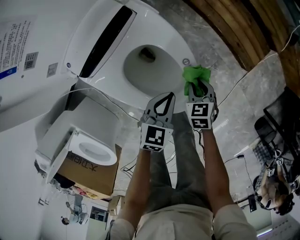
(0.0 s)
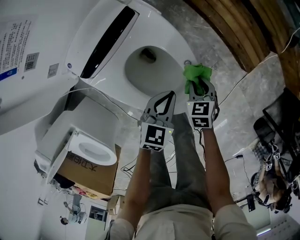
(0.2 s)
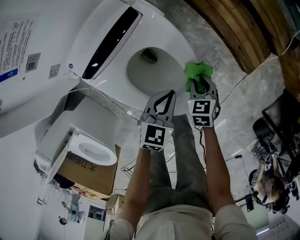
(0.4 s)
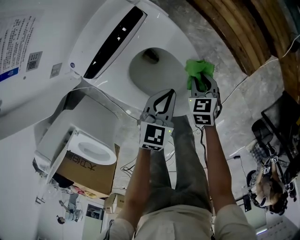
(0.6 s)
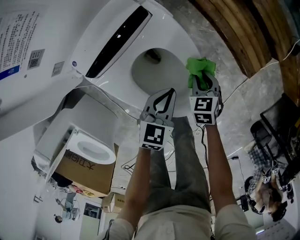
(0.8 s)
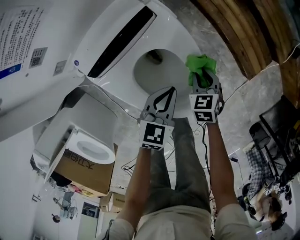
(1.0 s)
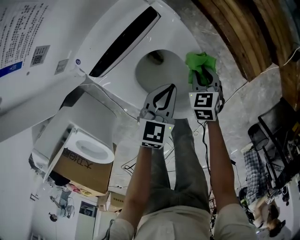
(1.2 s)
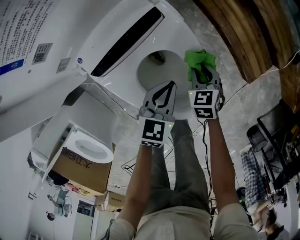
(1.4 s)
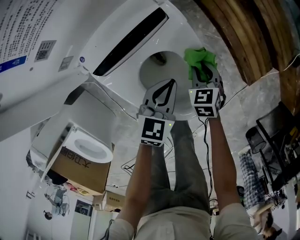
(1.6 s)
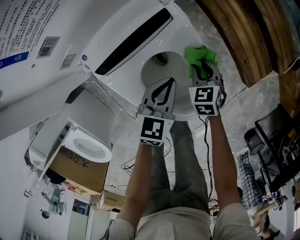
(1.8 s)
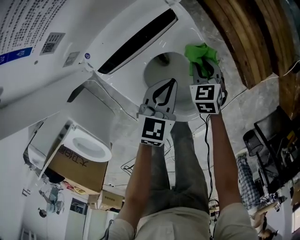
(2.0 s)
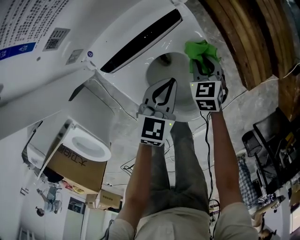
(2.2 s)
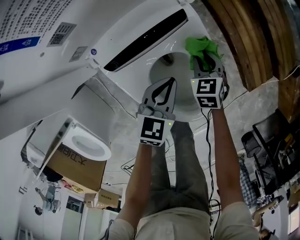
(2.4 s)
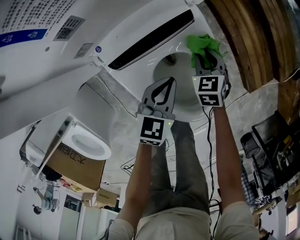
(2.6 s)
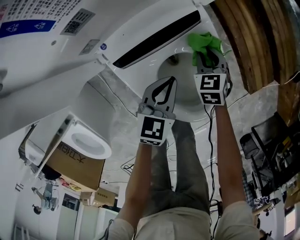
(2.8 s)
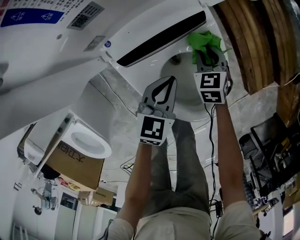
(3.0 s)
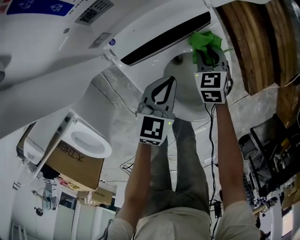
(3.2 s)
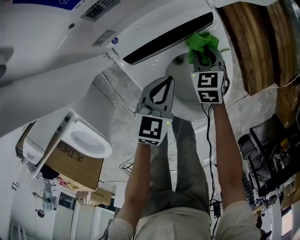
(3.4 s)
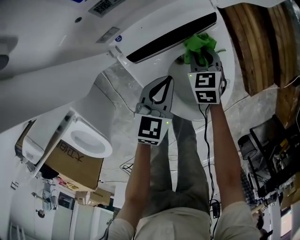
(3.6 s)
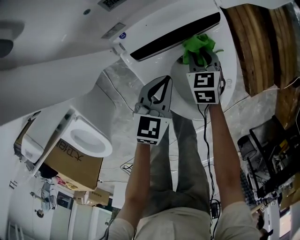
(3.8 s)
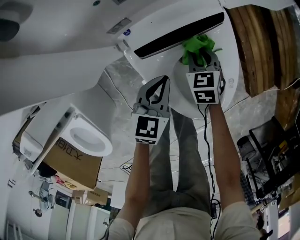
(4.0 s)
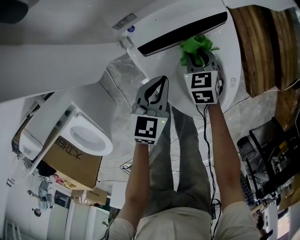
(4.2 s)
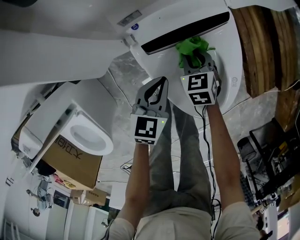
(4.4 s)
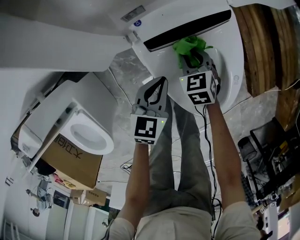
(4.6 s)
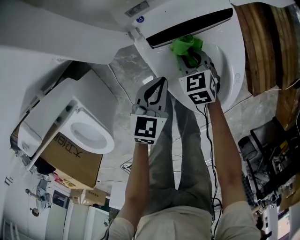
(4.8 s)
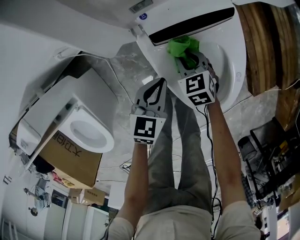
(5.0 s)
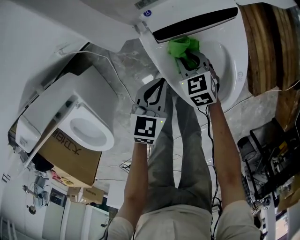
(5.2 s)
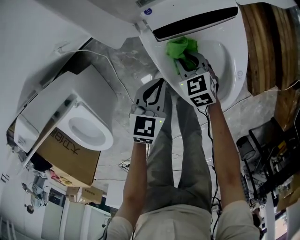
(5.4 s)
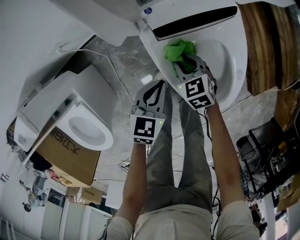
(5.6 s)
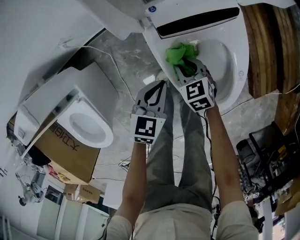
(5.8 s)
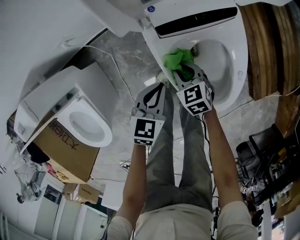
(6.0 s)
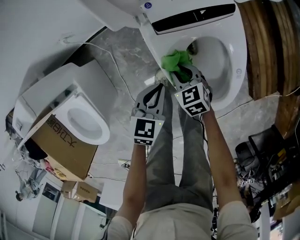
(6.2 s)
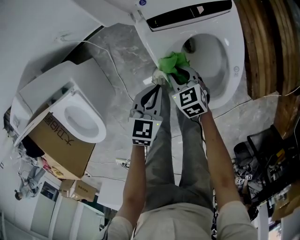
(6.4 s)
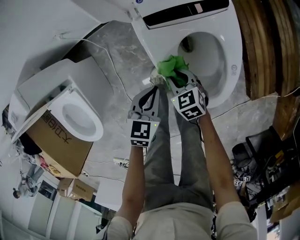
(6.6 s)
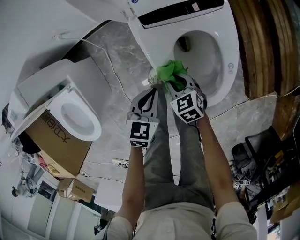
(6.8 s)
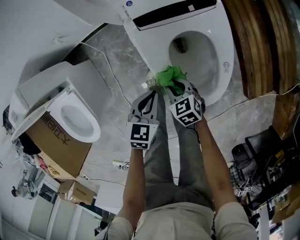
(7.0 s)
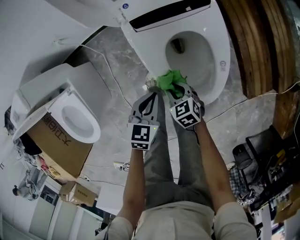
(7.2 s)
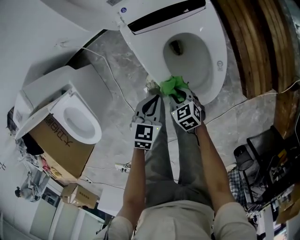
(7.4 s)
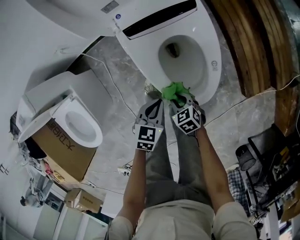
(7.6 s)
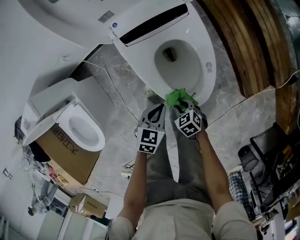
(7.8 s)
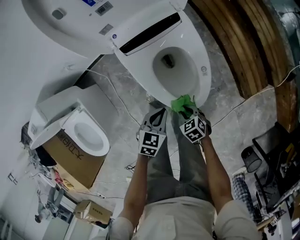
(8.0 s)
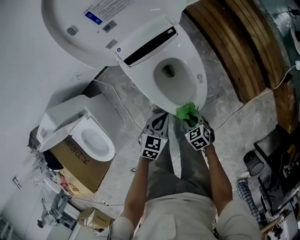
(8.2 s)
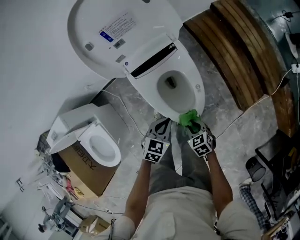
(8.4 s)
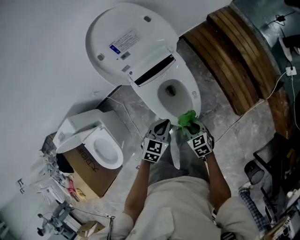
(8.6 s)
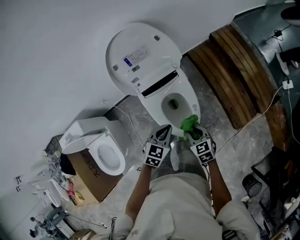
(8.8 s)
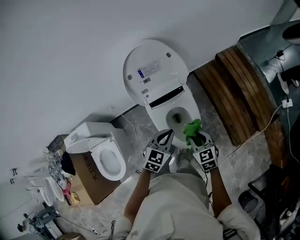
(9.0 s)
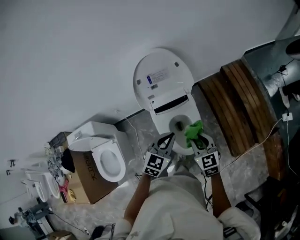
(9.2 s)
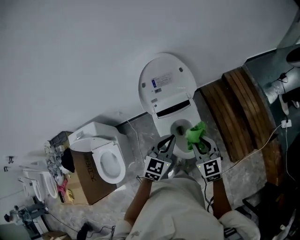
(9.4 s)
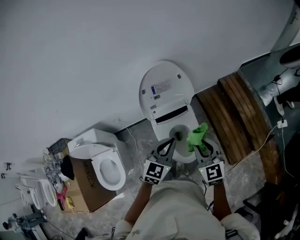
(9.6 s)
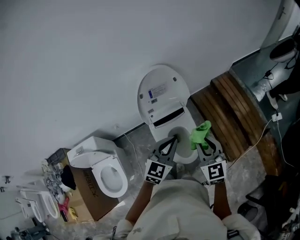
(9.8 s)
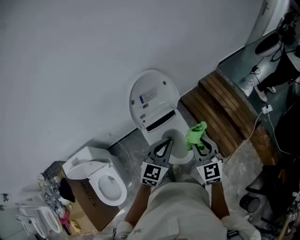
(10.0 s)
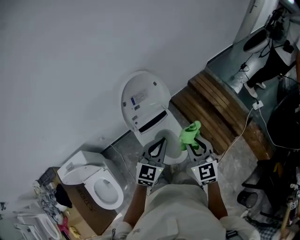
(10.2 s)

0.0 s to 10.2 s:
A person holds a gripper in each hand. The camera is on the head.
0.0 to 1.4 s: The left gripper moves to the left and forward, about 10 cm, while the right gripper travels forward and to the left by approximately 10 cm.
1.4 to 3.0 s: The right gripper travels to the left and forward by approximately 15 cm; the left gripper goes approximately 10 cm to the left.
3.0 to 4.4 s: The right gripper travels to the left and backward by approximately 15 cm. The left gripper goes about 10 cm to the left.
4.4 to 5.8 s: The right gripper is displaced backward and to the left by some 10 cm, while the left gripper travels backward by some 5 cm.
5.8 to 7.2 s: The left gripper moves backward, some 10 cm. Meanwhile the right gripper heads backward, covering about 15 cm.
7.2 to 8.8 s: Both grippers move upward and to the right, about 30 cm. The right gripper turns by about 20 degrees; the left gripper changes its angle by roughly 20 degrees.
8.8 to 10.2 s: Both grippers move upward, roughly 30 cm. The right gripper swivels about 40 degrees, while the left gripper turns by about 30 degrees.

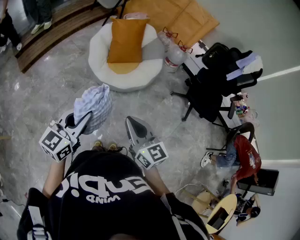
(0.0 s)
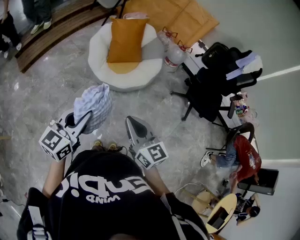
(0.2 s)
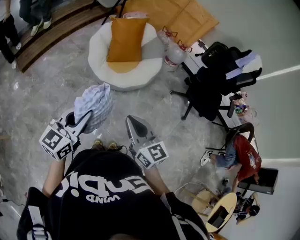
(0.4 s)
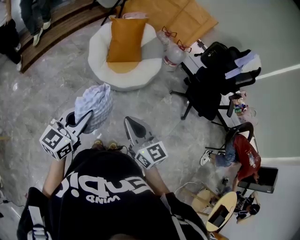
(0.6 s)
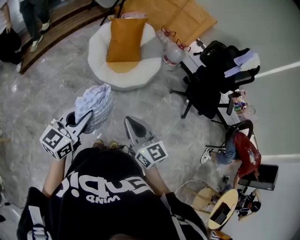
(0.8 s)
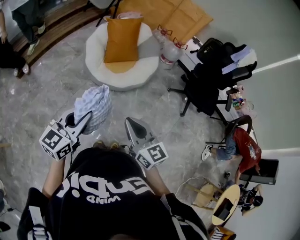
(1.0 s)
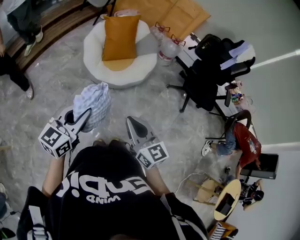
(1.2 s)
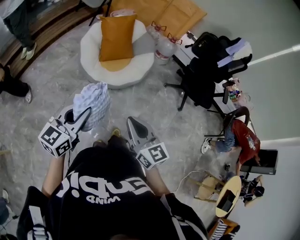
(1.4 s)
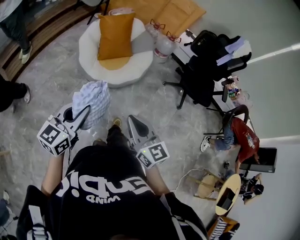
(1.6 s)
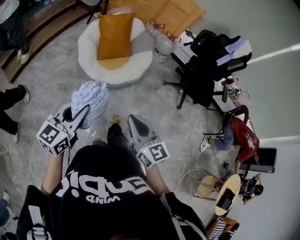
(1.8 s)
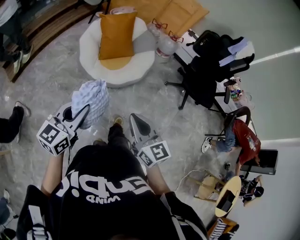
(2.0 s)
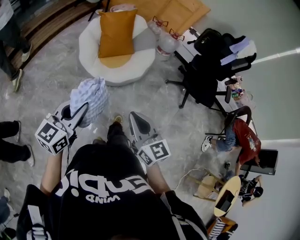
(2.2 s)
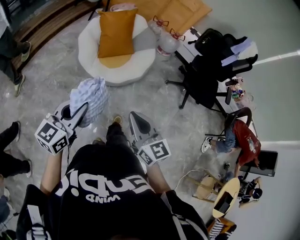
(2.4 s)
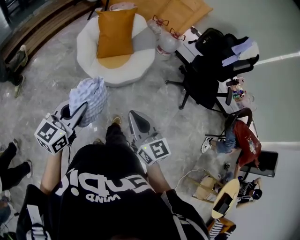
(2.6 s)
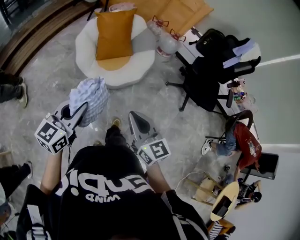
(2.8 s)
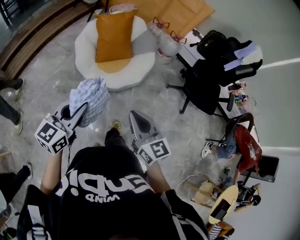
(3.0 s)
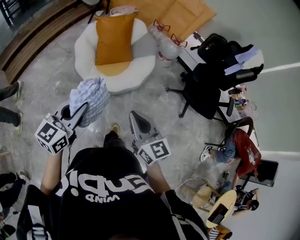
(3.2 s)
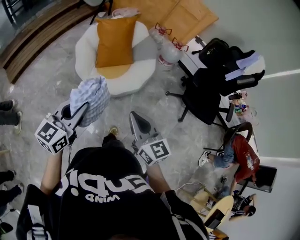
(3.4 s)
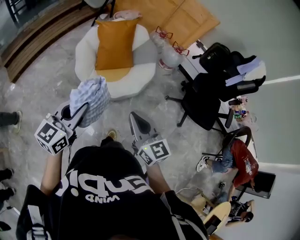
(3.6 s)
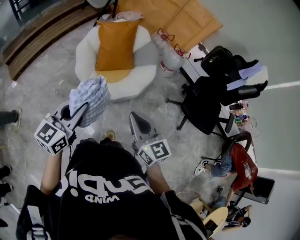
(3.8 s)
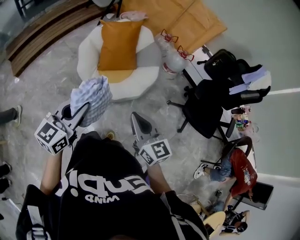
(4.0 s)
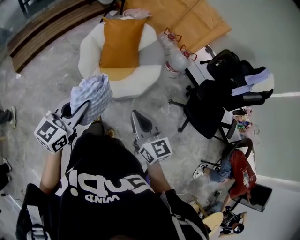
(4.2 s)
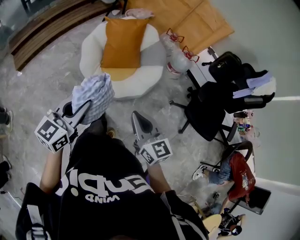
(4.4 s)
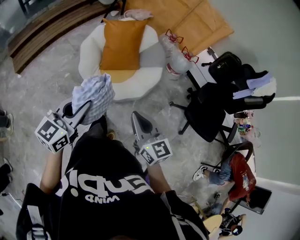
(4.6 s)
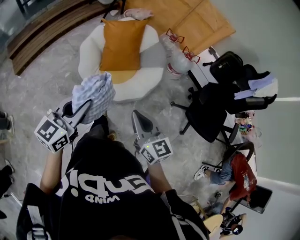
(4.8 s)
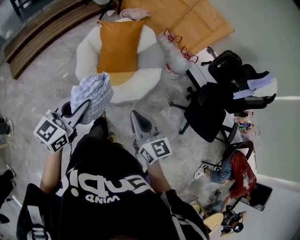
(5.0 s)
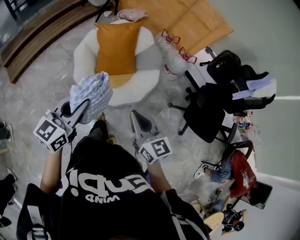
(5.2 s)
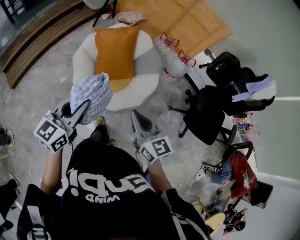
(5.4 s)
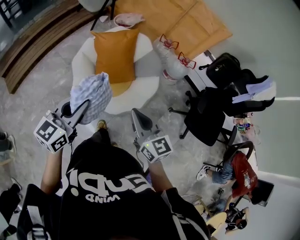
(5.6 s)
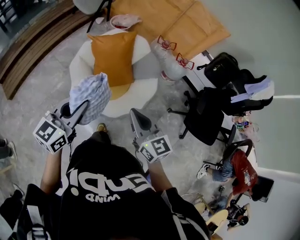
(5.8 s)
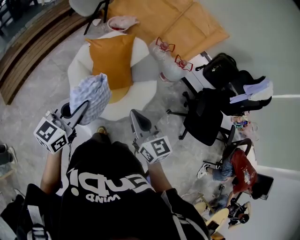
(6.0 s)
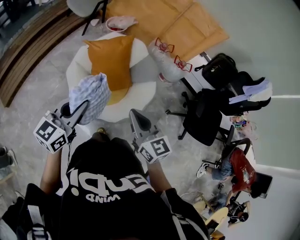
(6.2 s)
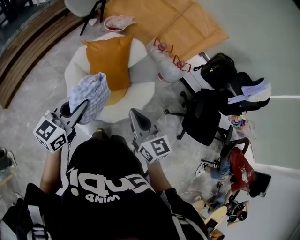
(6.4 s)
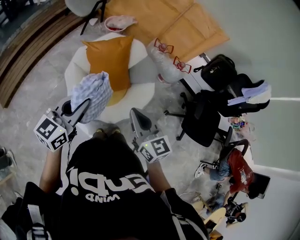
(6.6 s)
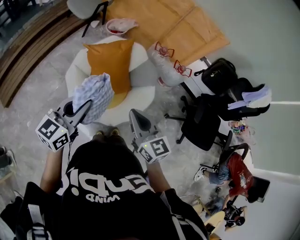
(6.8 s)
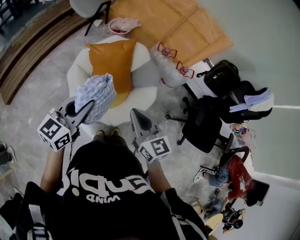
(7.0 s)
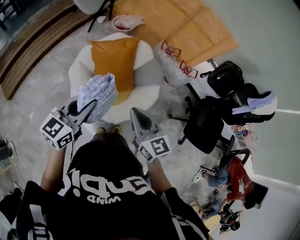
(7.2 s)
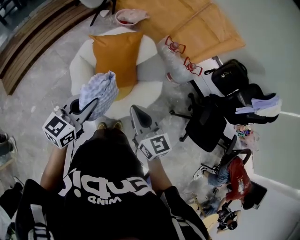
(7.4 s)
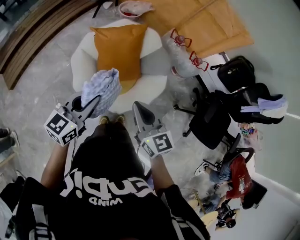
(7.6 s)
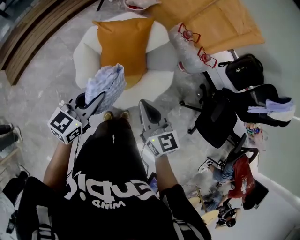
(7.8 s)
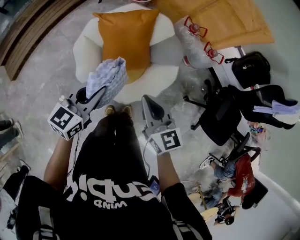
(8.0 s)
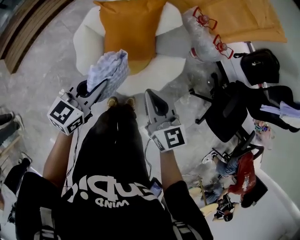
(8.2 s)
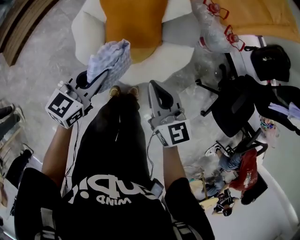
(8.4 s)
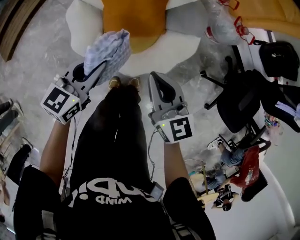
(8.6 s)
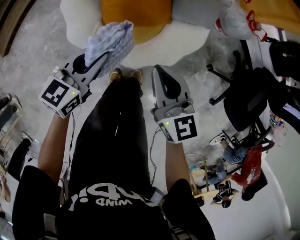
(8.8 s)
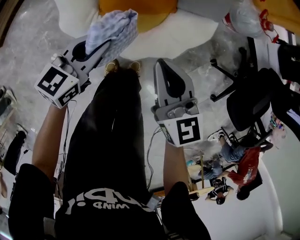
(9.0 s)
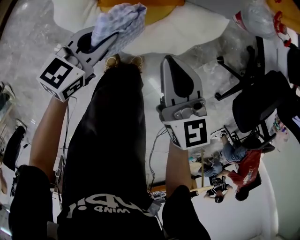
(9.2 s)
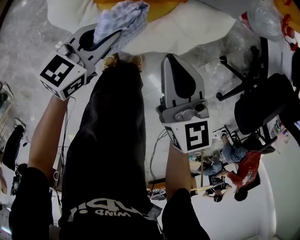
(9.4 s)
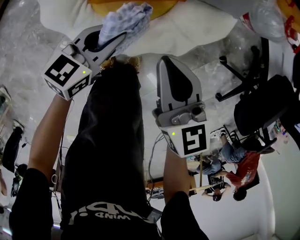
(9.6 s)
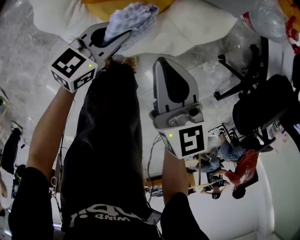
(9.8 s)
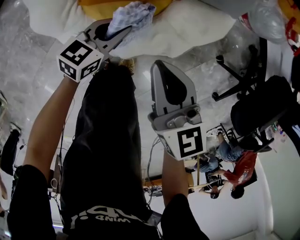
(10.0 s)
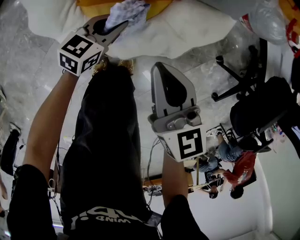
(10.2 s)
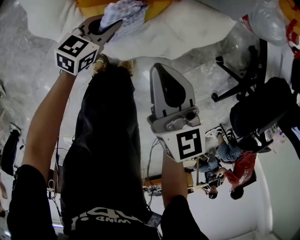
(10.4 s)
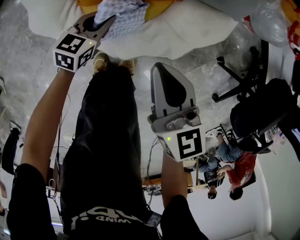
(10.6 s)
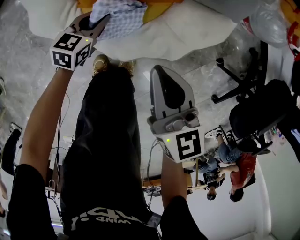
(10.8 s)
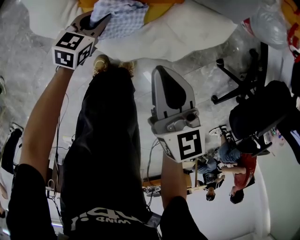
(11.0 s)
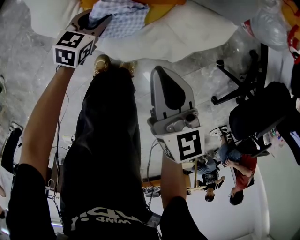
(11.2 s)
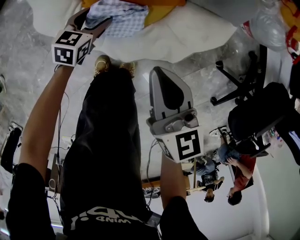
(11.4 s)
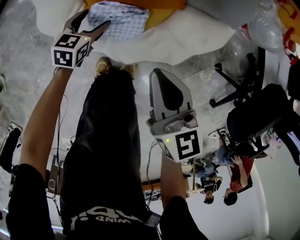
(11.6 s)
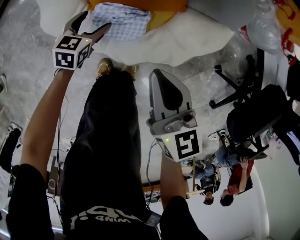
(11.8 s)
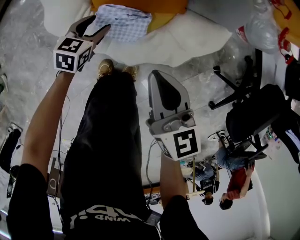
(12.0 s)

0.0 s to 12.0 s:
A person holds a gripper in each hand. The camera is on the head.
0.0 to 1.6 s: The grippers make only small movements.
1.6 to 3.0 s: The grippers both shift forward by some 15 cm.
3.0 to 4.4 s: The grippers both shift forward and to the right by approximately 10 cm.
4.4 to 6.0 s: Both grippers travel together forward, some 25 cm.
6.0 to 7.6 s: The right gripper shifts some 10 cm forward. Meanwhile the left gripper heads forward and downward, covering roughly 10 cm.
7.6 to 9.0 s: The two grippers go some 30 cm downward.
9.0 to 10.4 s: The left gripper shifts approximately 25 cm downward. Meanwhile the right gripper shifts roughly 15 cm downward.
10.4 to 12.0 s: The left gripper goes roughly 10 cm to the left, and opens up.

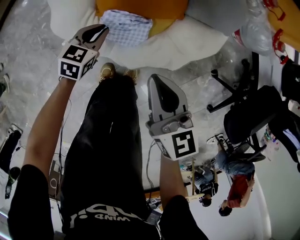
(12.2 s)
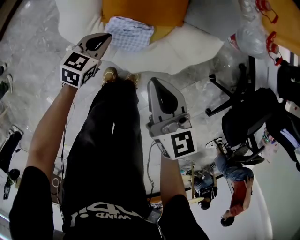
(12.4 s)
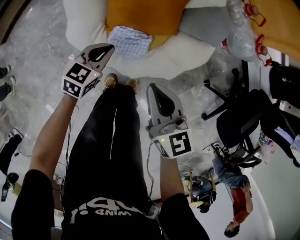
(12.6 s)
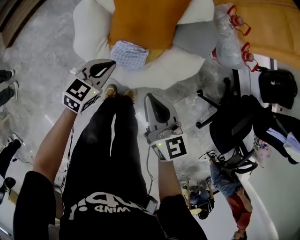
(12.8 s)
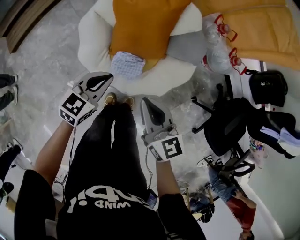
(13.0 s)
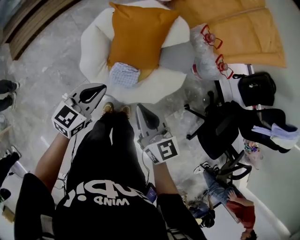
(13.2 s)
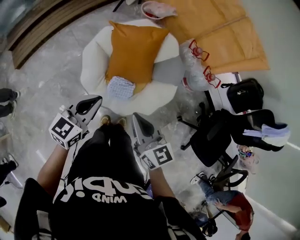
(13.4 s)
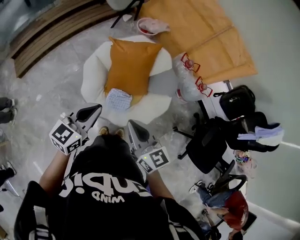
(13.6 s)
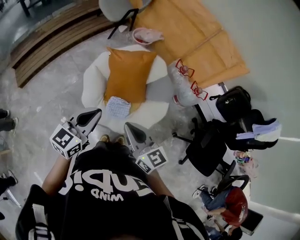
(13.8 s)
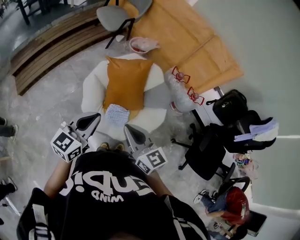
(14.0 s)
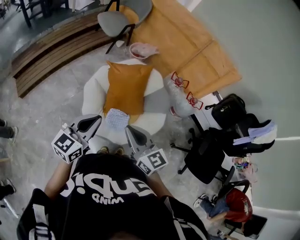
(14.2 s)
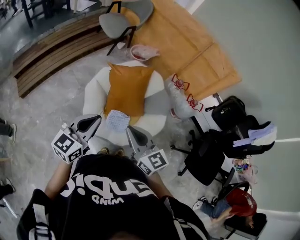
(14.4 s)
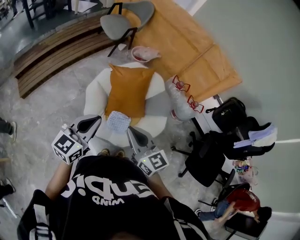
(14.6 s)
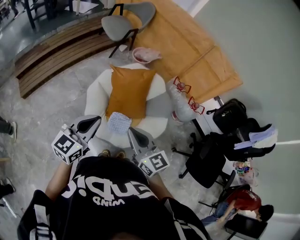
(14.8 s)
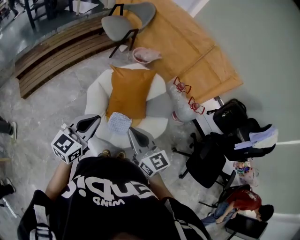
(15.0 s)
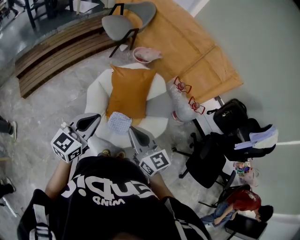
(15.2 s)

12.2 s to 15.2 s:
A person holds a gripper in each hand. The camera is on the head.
12.2 to 13.8 s: The left gripper goes approximately 60 cm upward, and points its fingers approximately 40 degrees further upward; the right gripper shifts some 40 cm upward.
13.8 to 15.2 s: The left gripper ends up some 5 cm from where it was.
